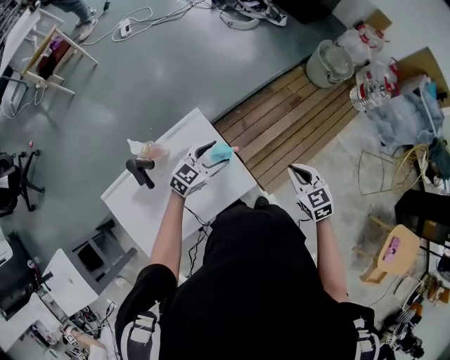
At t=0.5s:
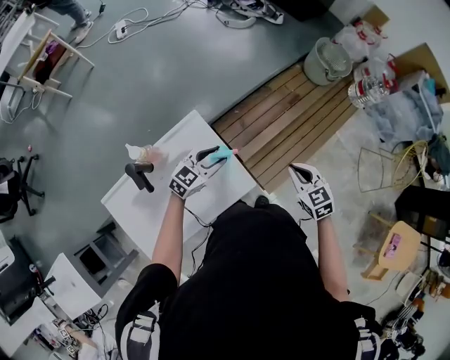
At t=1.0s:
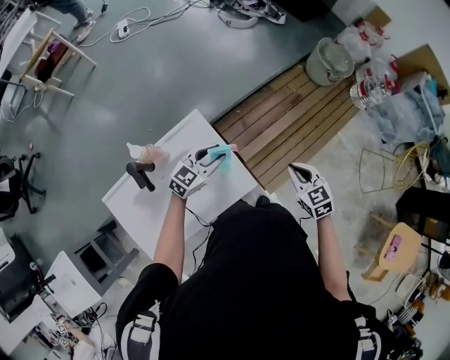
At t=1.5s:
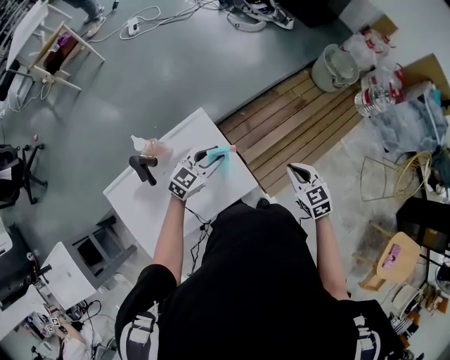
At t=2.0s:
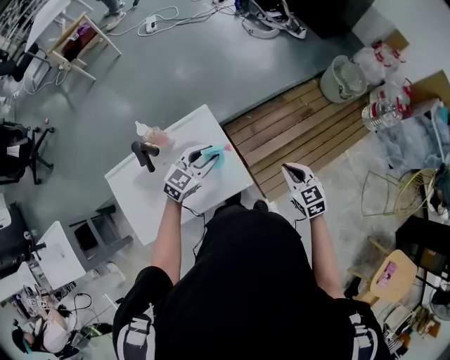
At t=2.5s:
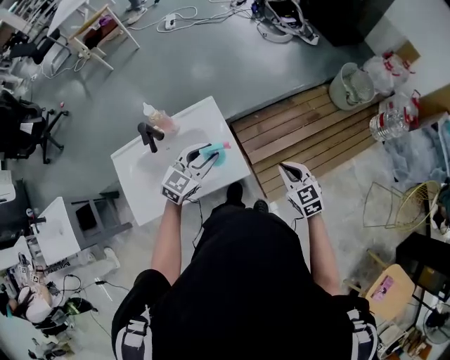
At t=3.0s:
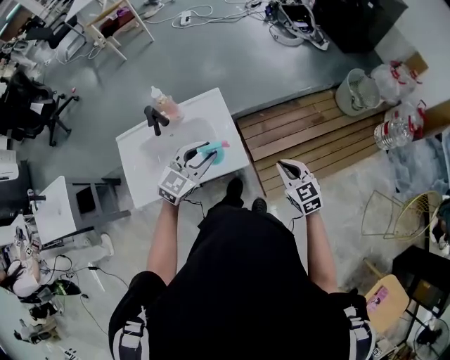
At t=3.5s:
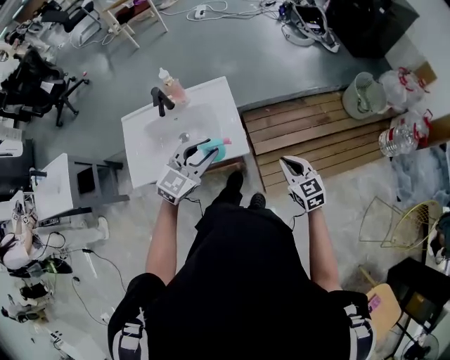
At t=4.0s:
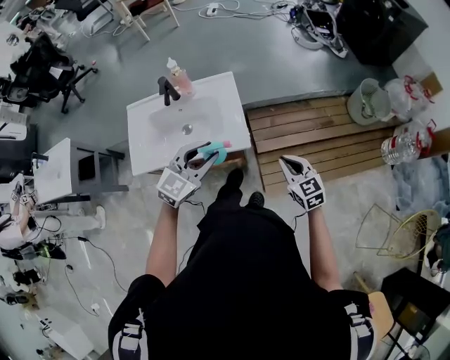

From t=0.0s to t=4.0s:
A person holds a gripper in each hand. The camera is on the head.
From t=0.0s to t=2.0s: The left gripper heads upward, covering some 5 cm, and closes.
From t=2.0s to t=4.0s: The left gripper shifts roughly 30 cm backward and upward, and rotates some 20 degrees. Meanwhile the right gripper moves backward, some 20 cm, and swivels some 20 degrees.

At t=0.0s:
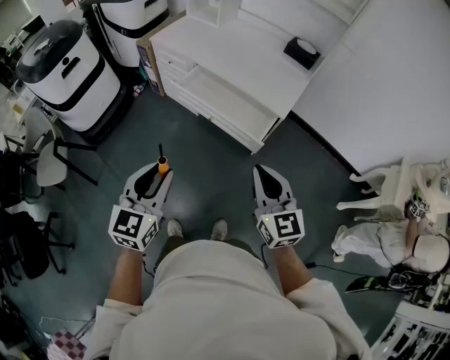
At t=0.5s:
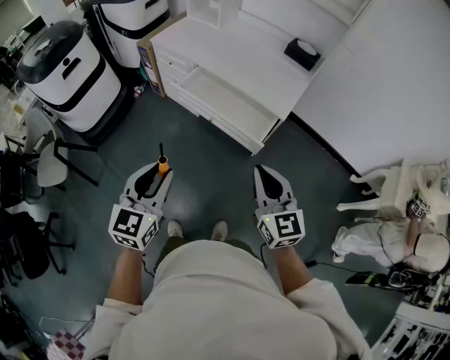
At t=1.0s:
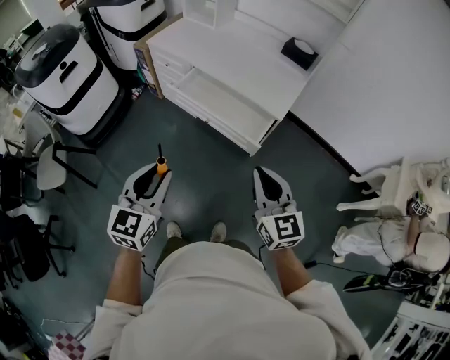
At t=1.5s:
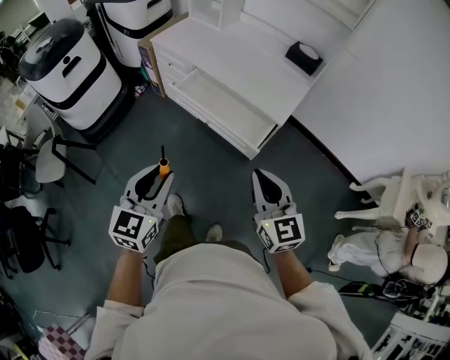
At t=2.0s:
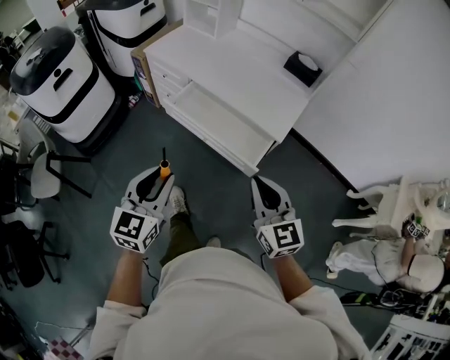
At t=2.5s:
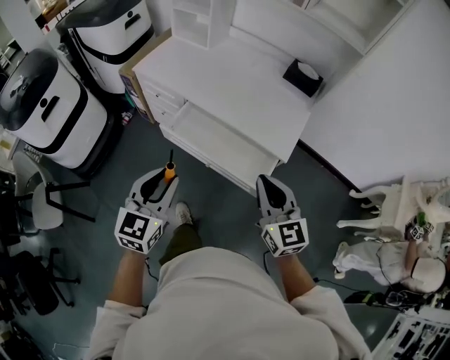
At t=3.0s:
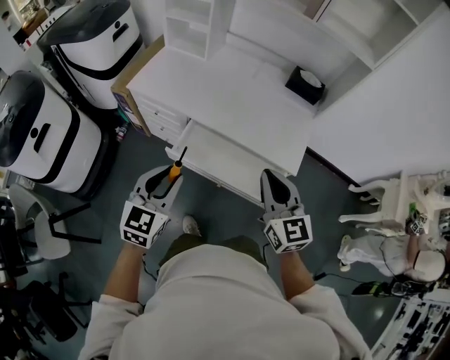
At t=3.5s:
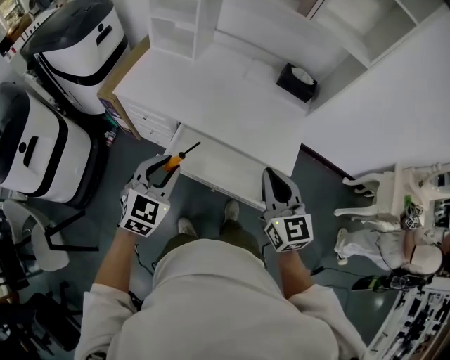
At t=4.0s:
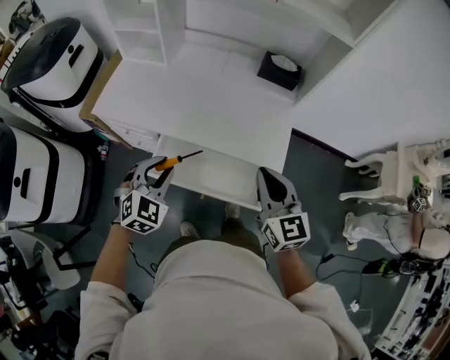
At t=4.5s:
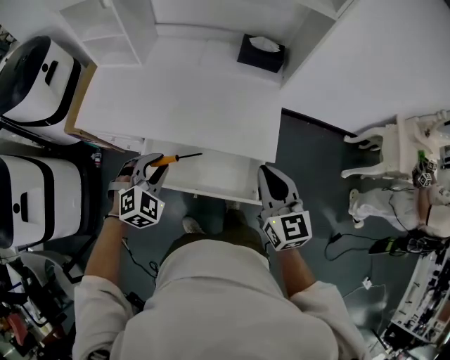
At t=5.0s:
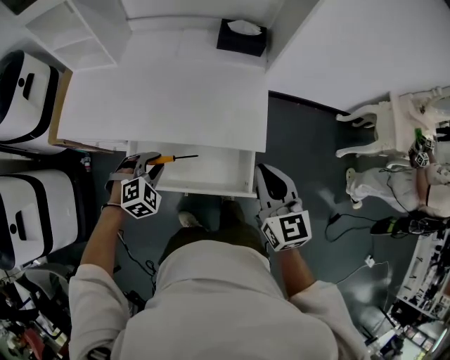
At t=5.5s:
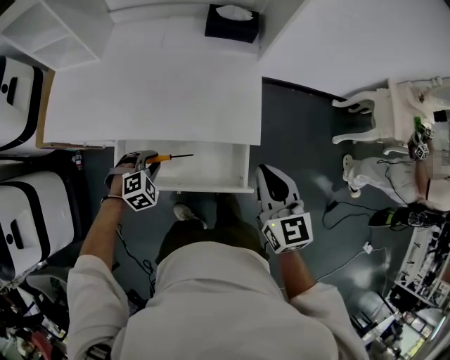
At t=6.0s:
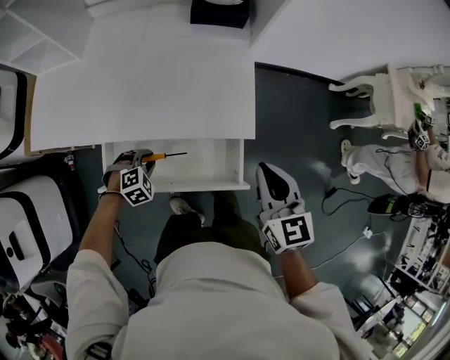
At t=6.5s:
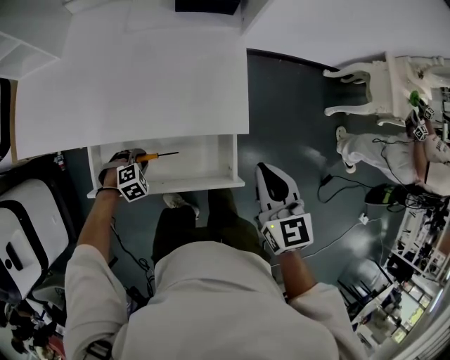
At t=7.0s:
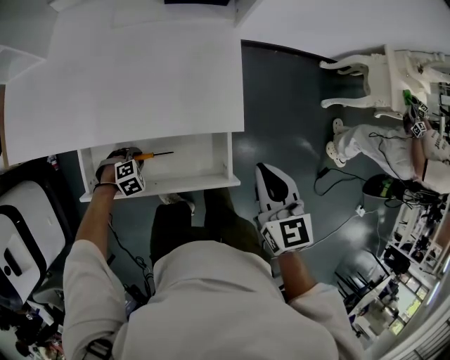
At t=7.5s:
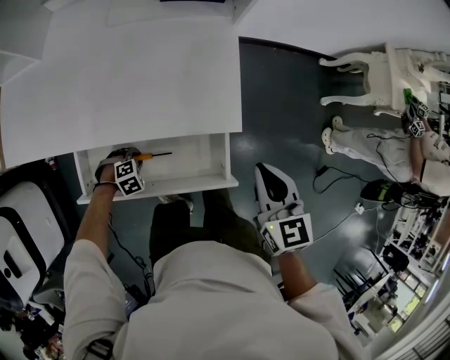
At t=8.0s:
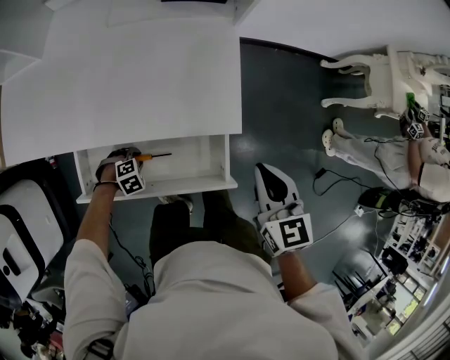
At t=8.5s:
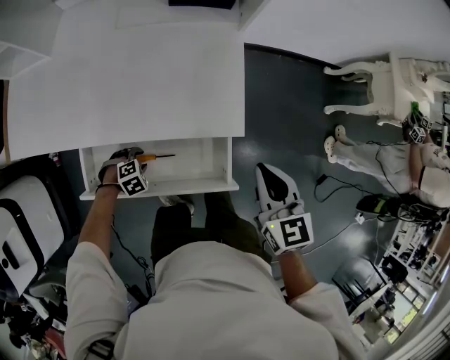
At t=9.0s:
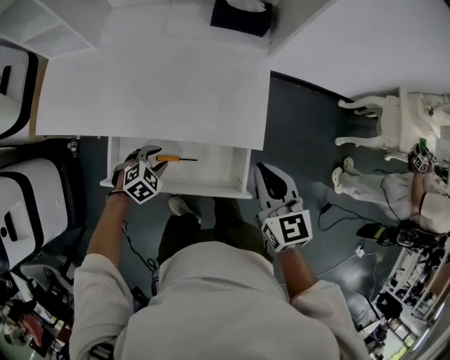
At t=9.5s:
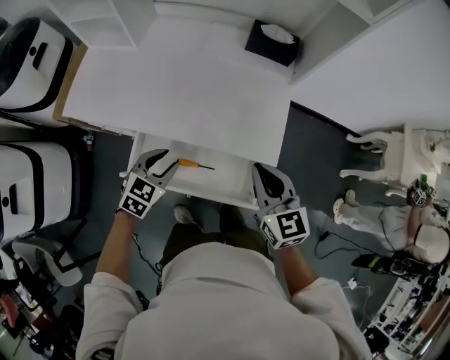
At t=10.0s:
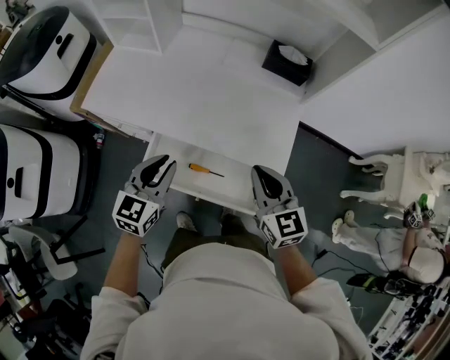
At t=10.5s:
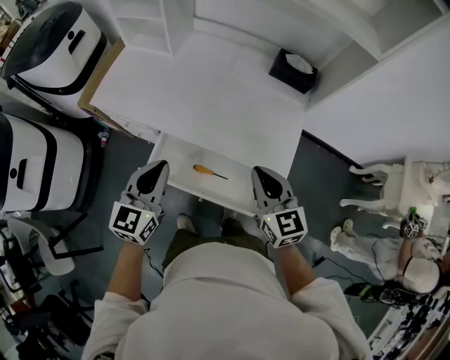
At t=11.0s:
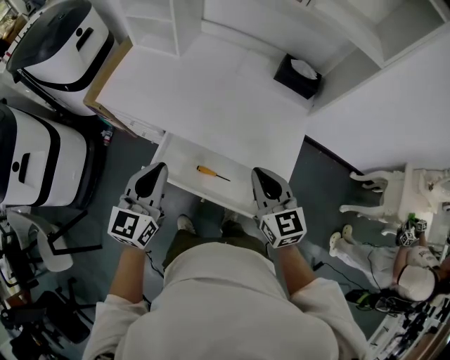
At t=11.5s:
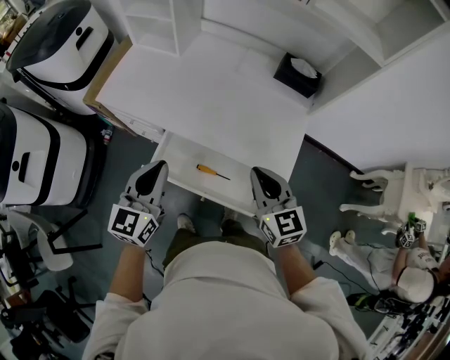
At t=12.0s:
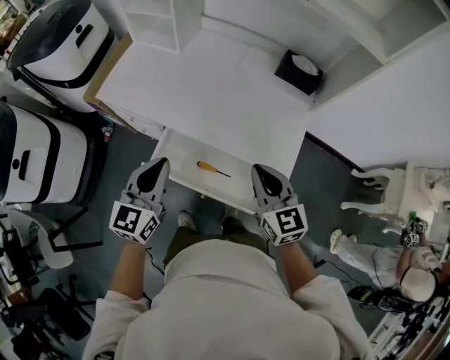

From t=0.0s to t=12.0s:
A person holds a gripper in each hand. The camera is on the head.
From t=0.0s to t=2.0s: Both grippers travel together forward, roughly 10 cm.
From t=2.0s to t=4.0s: Both grippers travel together forward, roughly 35 cm. The right gripper swivels some 20 degrees, while the left gripper swivels roughly 50 degrees.
From t=4.0s to t=6.0s: The right gripper goes approximately 15 cm to the right and downward, and rotates about 20 degrees. The left gripper shifts about 25 cm downward, and points its fingers some 40 degrees further downward.
From t=6.0s to t=8.0s: The right gripper goes roughly 5 cm downward. The left gripper heads downward, covering about 15 cm.
From t=8.0s to t=10.0s: The right gripper changes place by approximately 20 cm, and turns by about 30 degrees, while the left gripper shifts roughly 40 cm upward, and tips its fingers upward by roughly 60 degrees.
From t=10.0s to t=12.0s: The left gripper travels upward by approximately 5 cm.

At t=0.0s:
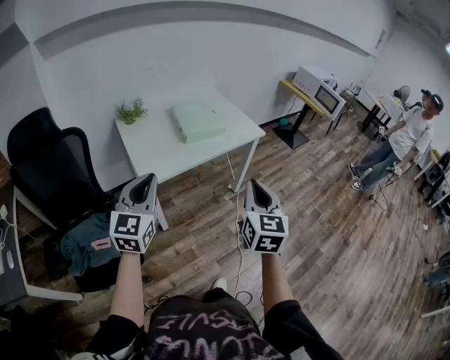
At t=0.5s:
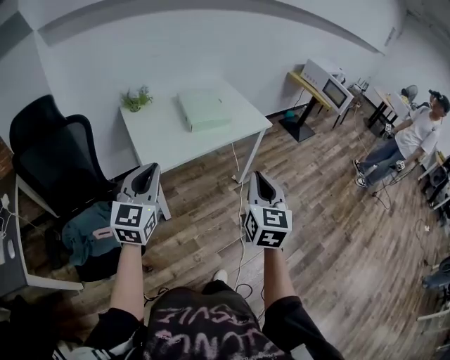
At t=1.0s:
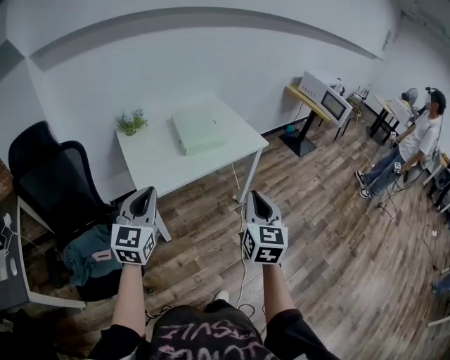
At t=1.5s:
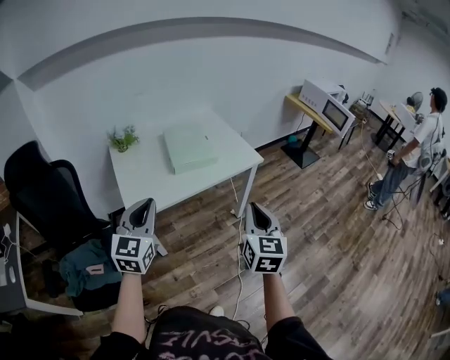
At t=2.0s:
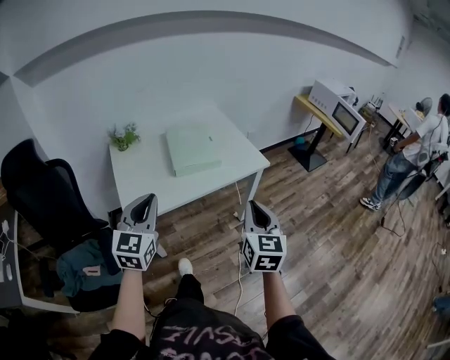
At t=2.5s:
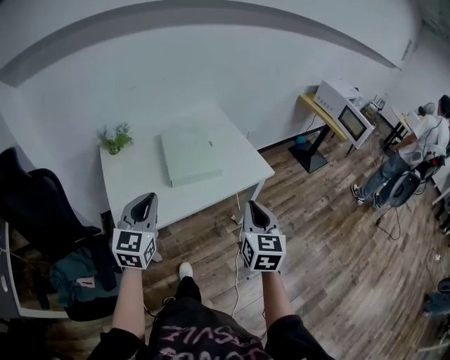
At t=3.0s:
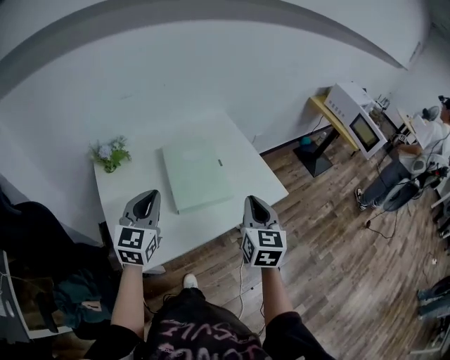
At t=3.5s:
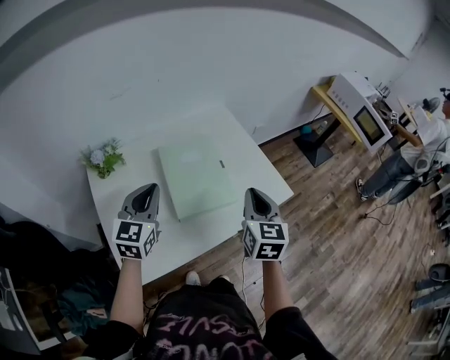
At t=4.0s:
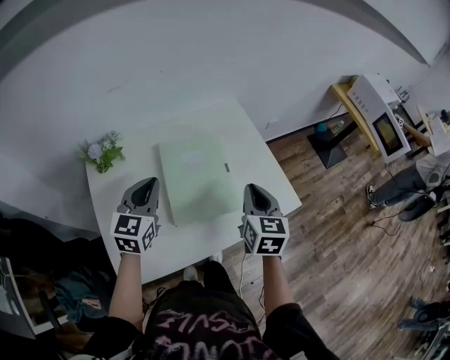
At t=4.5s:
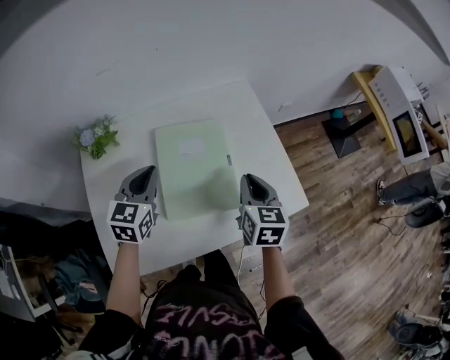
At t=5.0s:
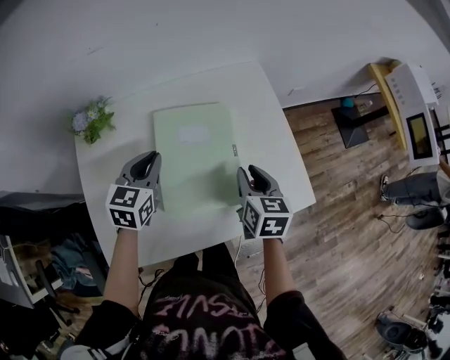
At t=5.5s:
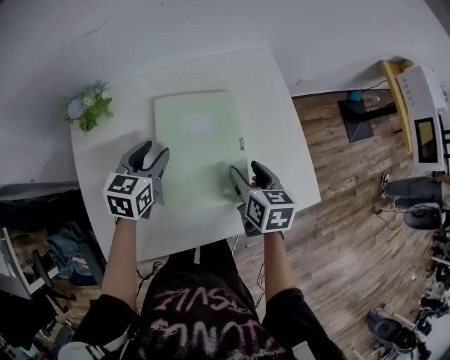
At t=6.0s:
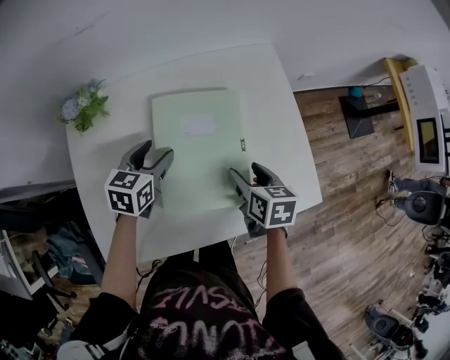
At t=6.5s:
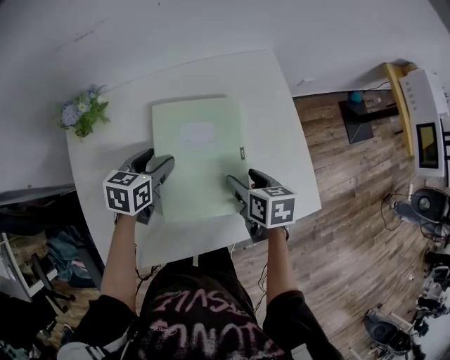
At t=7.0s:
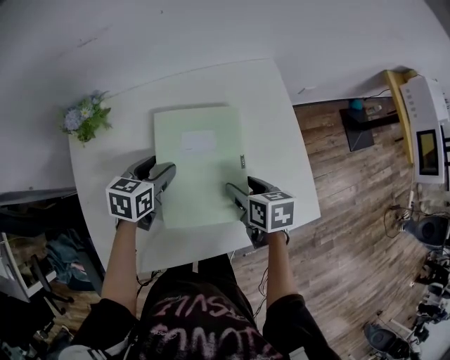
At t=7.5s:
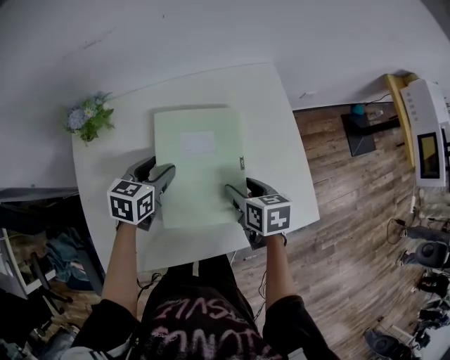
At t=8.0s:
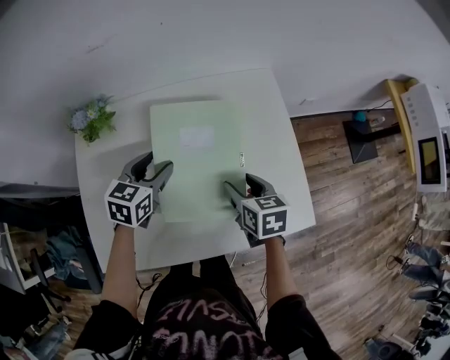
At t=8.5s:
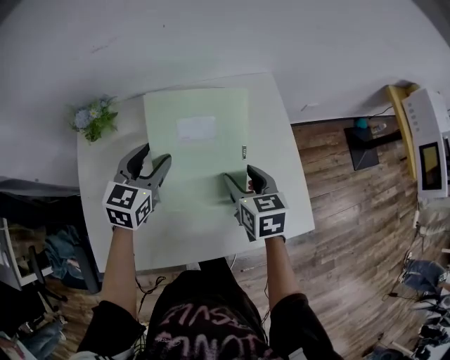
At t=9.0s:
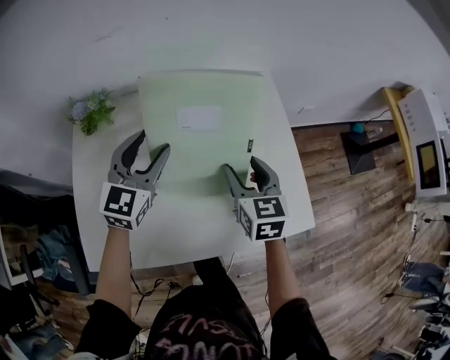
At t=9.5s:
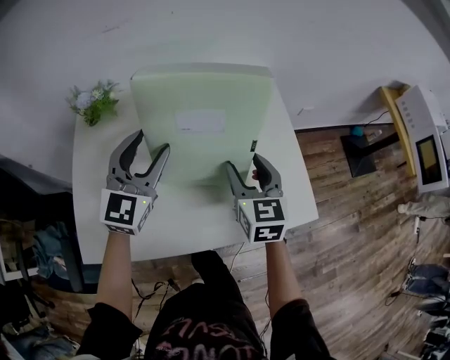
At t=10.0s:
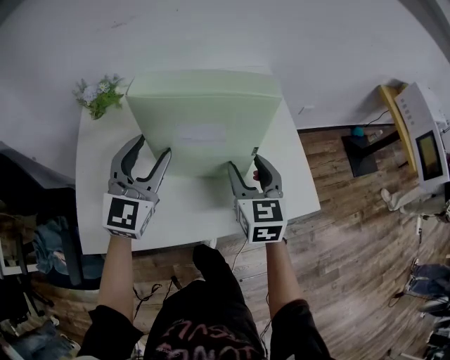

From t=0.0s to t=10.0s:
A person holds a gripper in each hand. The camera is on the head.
From t=0.0s to t=2.0s: Both grippers move forward and to the right, some 20 cm.
From t=2.0s to t=4.0s: The two grippers travel together, forward, roughly 40 cm.
From t=4.0s to t=6.0s: The two grippers go roughly 20 cm downward and forward. The right gripper rotates roughly 40 degrees, and opens its fingers; the left gripper changes its angle by some 30 degrees, and opens its fingers.
From t=6.0s to t=8.0s: The grippers make only small movements.
From t=8.0s to t=10.0s: The right gripper shifts about 5 cm backward, and turns by some 30 degrees. Meanwhile the left gripper travels backward and upward by roughly 15 cm, and angles its fingers upward, by approximately 30 degrees.
